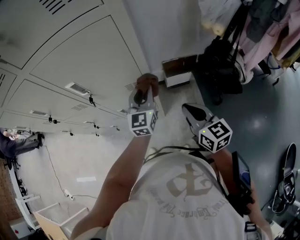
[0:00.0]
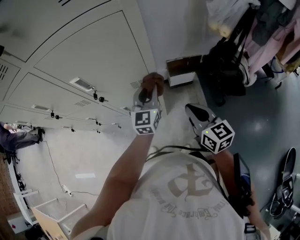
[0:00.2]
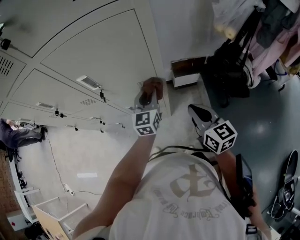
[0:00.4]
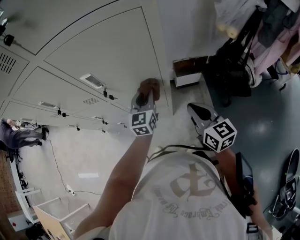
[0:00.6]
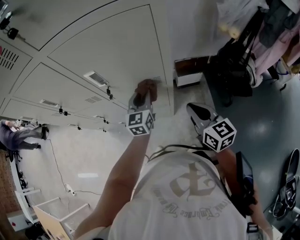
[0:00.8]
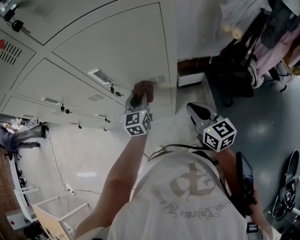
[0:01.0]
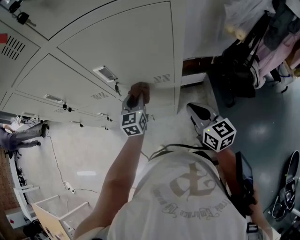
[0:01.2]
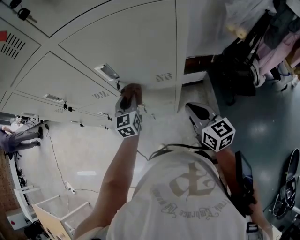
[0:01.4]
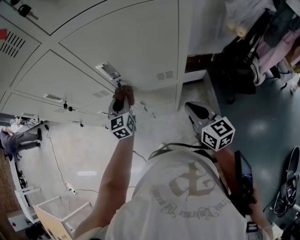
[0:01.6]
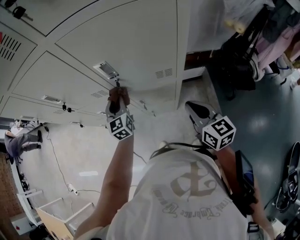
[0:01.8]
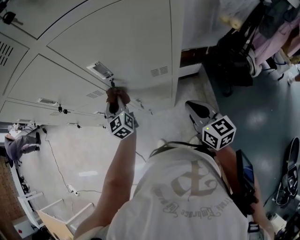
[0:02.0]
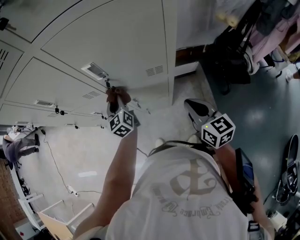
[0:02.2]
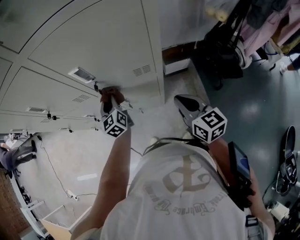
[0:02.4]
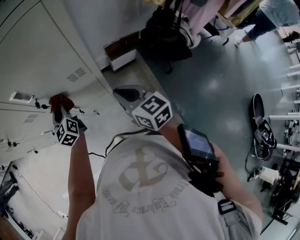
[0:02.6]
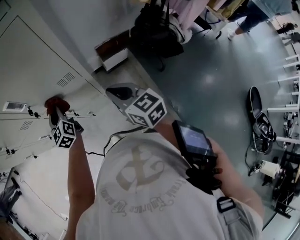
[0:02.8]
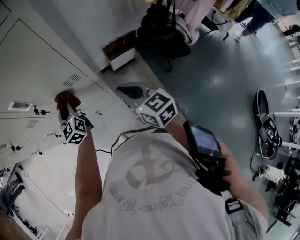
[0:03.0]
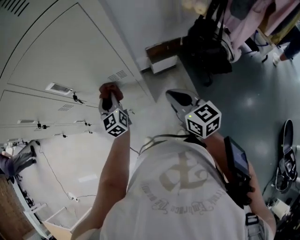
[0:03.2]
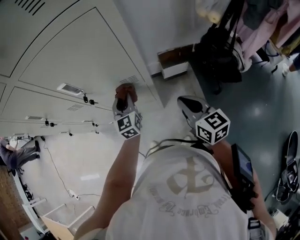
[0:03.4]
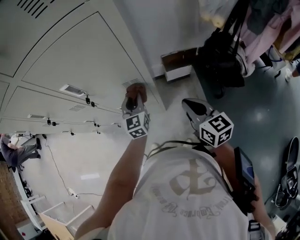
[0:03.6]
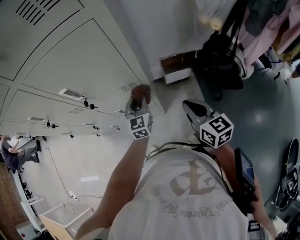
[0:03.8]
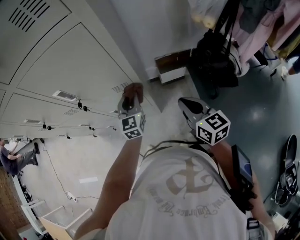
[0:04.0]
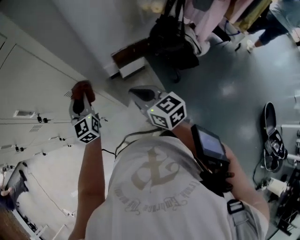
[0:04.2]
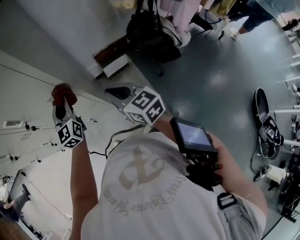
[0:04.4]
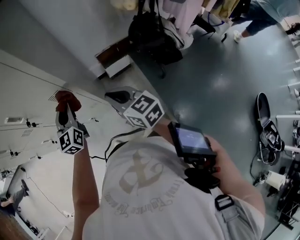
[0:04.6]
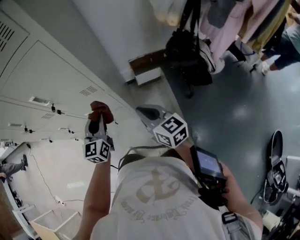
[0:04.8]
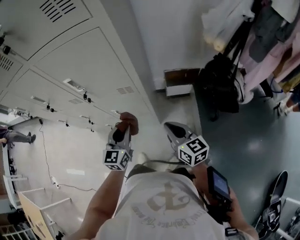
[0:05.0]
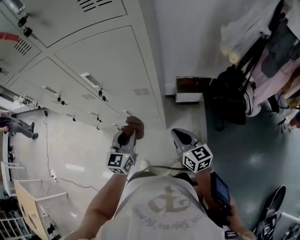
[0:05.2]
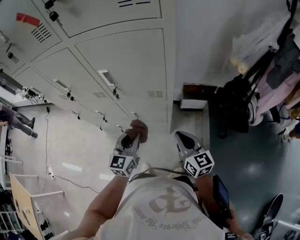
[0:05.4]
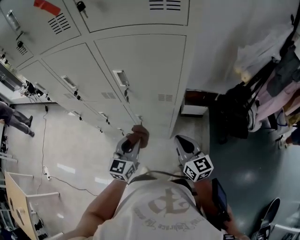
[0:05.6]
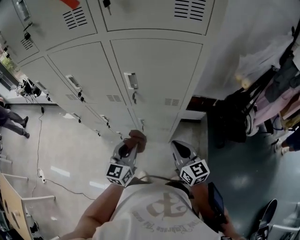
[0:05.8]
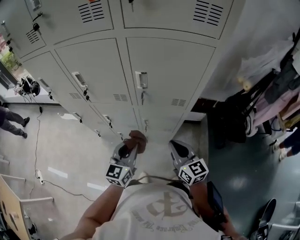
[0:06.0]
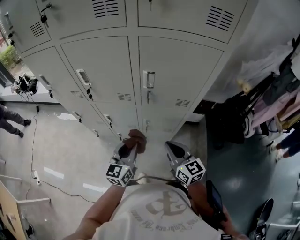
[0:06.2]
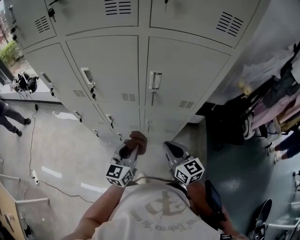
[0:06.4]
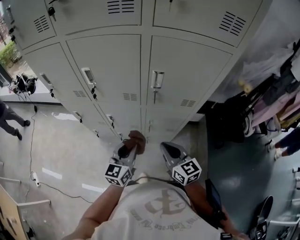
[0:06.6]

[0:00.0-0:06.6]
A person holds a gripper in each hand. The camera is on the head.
0:00.0 to 0:01.6: The left gripper travels to the left by some 25 cm. Meanwhile the right gripper travels to the left by roughly 10 cm.
0:01.6 to 0:03.2: The two grippers go about 10 cm to the right.
0:03.2 to 0:05.0: The left gripper shifts approximately 15 cm backward.
0:05.0 to 0:06.6: Both grippers move to the left, about 25 cm.

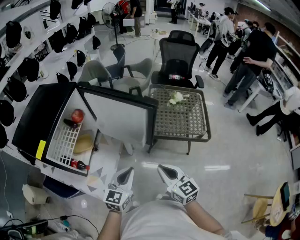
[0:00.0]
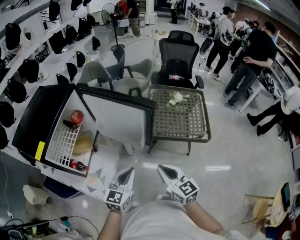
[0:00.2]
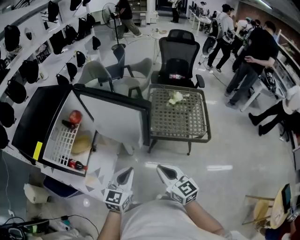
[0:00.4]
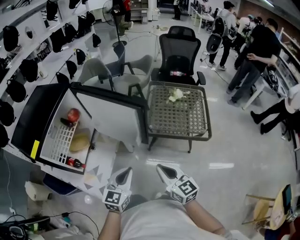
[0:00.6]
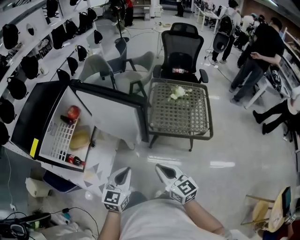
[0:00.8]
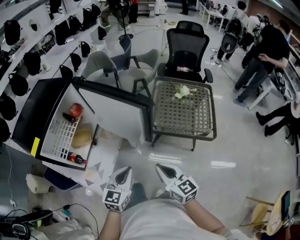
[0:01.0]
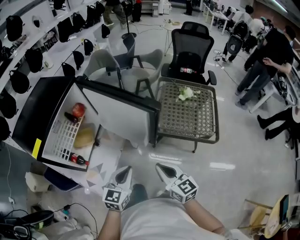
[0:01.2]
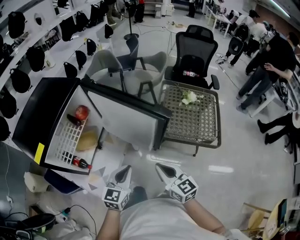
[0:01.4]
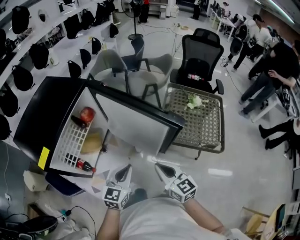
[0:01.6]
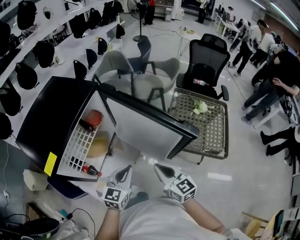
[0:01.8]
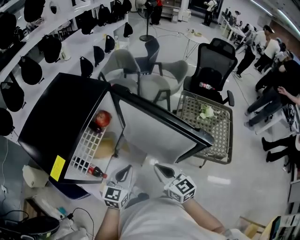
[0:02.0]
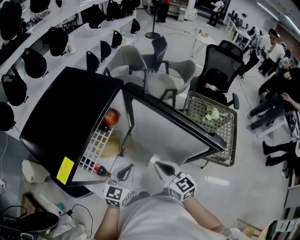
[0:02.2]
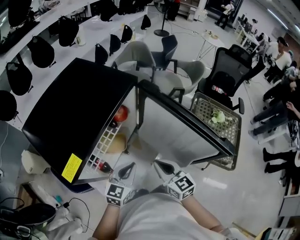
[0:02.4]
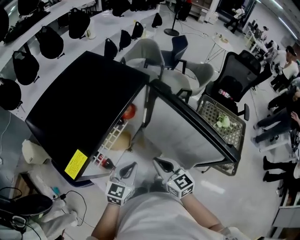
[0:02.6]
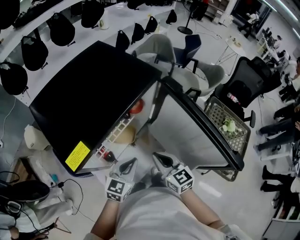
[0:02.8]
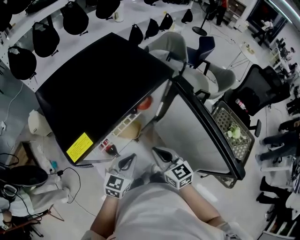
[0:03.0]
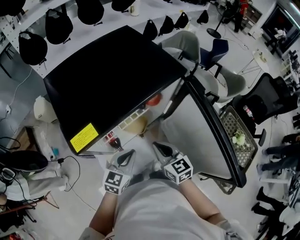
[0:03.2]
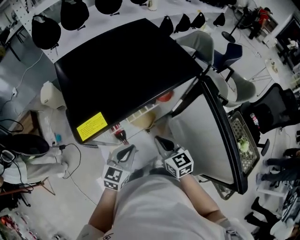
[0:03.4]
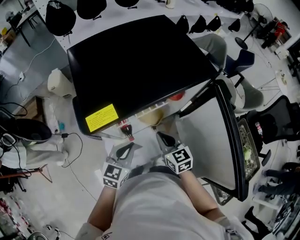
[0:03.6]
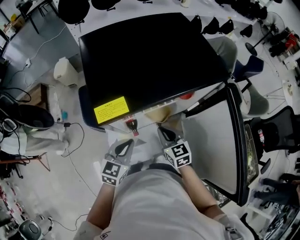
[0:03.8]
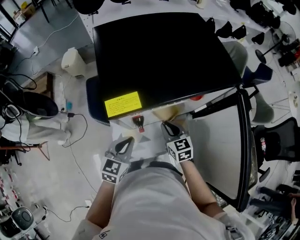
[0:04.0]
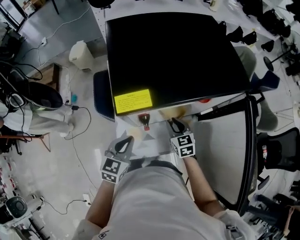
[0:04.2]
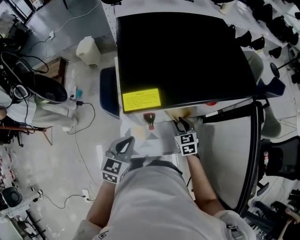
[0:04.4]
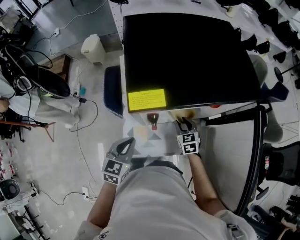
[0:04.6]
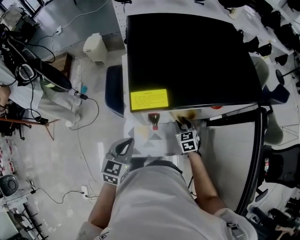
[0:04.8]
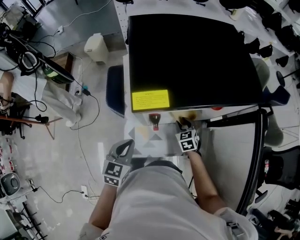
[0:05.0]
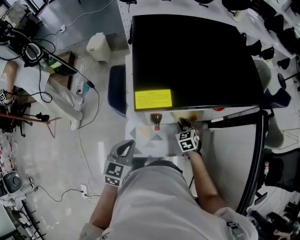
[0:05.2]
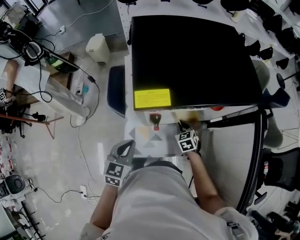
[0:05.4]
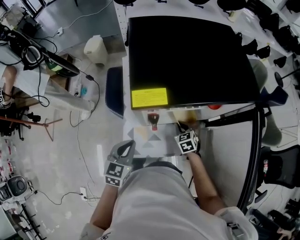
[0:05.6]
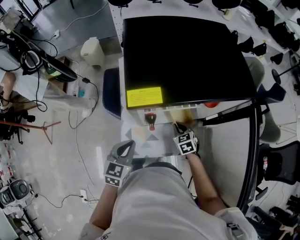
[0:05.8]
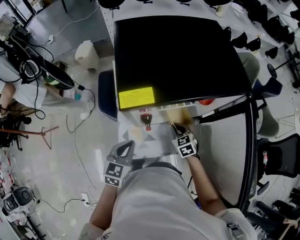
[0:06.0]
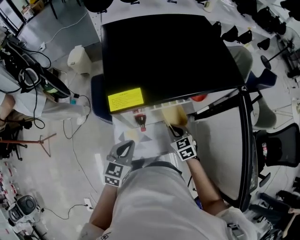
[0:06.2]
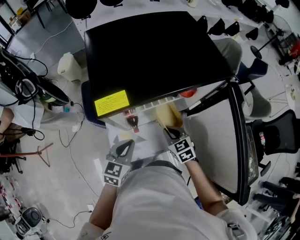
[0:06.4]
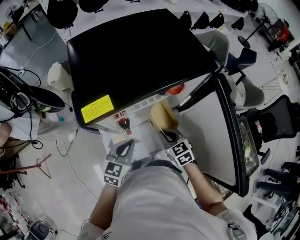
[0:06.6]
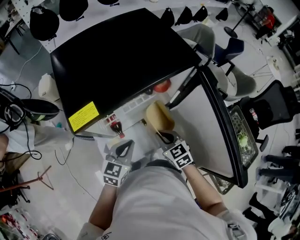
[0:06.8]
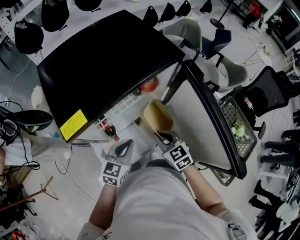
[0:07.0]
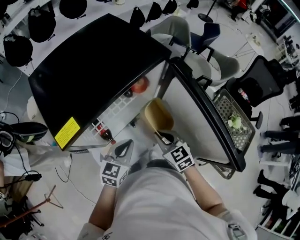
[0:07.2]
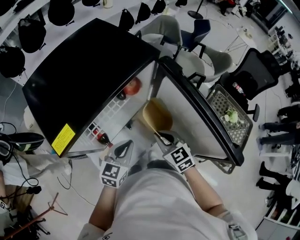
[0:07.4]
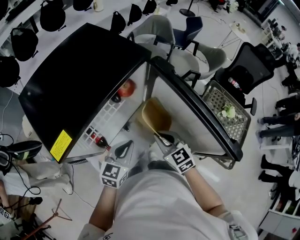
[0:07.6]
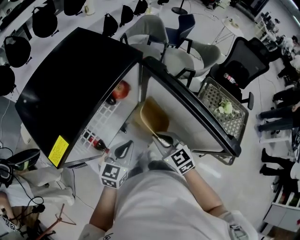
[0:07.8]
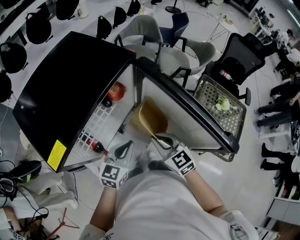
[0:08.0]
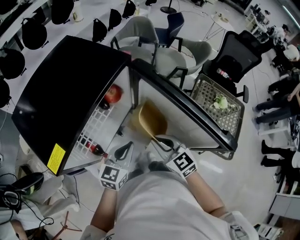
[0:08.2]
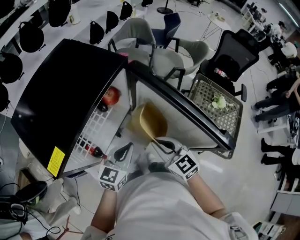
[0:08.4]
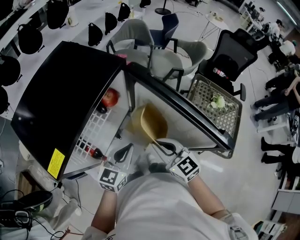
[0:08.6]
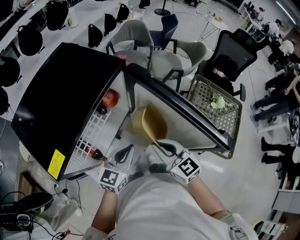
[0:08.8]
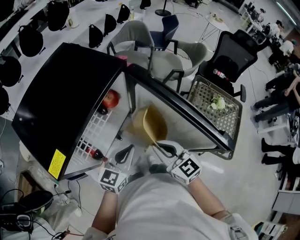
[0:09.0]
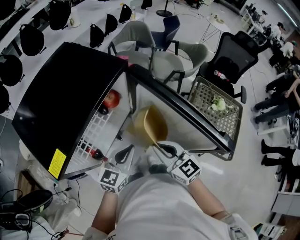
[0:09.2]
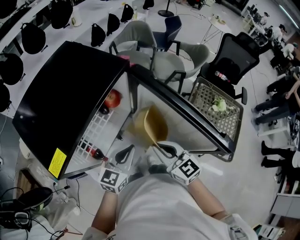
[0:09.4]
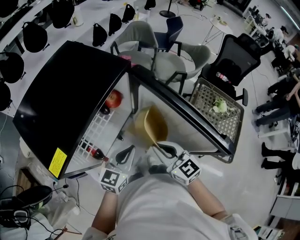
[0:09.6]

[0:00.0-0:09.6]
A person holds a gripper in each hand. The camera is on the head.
0:00.0 to 0:01.6: The grippers both shift forward and to the left by about 10 cm.
0:01.6 to 0:03.2: The right gripper ends up approximately 30 cm from where it was, and rotates approximately 40 degrees. Meanwhile the left gripper shifts by approximately 20 cm, and swivels approximately 30 degrees.
0:03.2 to 0:04.8: The left gripper travels to the left by roughly 15 cm, and swivels roughly 40 degrees, while the right gripper goes approximately 20 cm downward and forward, turns by about 30 degrees, and opens its fingers.
0:04.8 to 0:06.4: The left gripper travels to the right by approximately 10 cm; the right gripper travels backward and upward by some 10 cm, and closes.
0:06.4 to 0:08.0: The left gripper ends up some 15 cm from where it was, and swivels roughly 40 degrees. The right gripper shifts by some 15 cm, and changes its angle by approximately 30 degrees.
0:08.0 to 0:09.6: The grippers make only small movements.

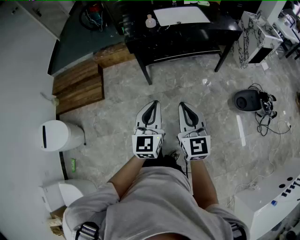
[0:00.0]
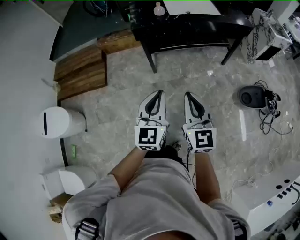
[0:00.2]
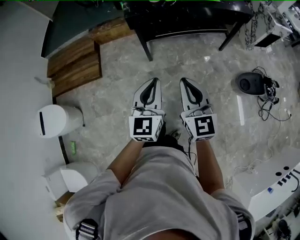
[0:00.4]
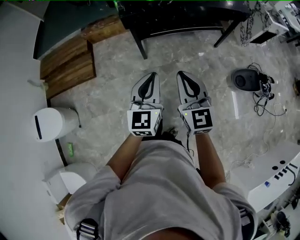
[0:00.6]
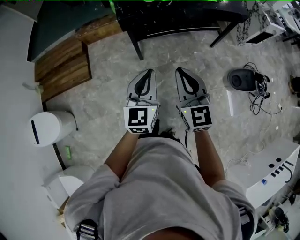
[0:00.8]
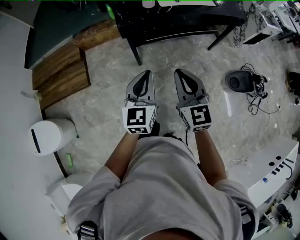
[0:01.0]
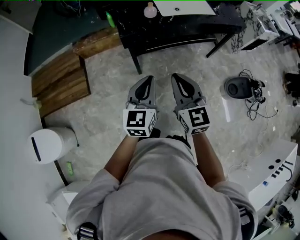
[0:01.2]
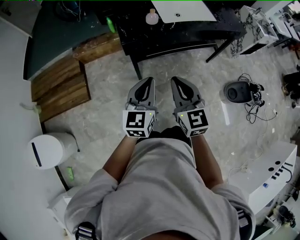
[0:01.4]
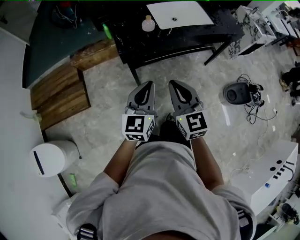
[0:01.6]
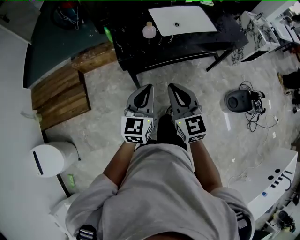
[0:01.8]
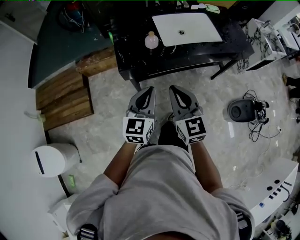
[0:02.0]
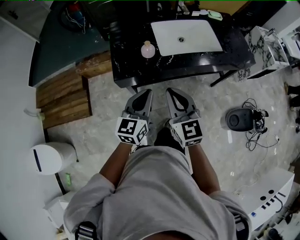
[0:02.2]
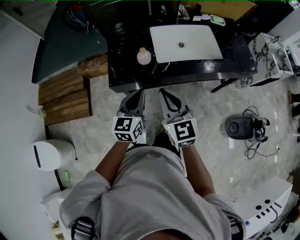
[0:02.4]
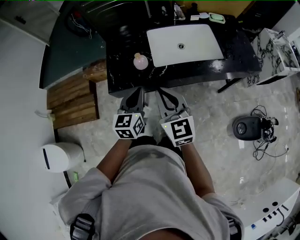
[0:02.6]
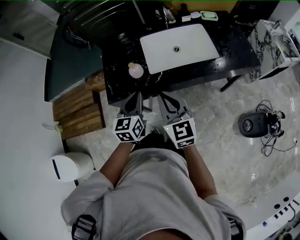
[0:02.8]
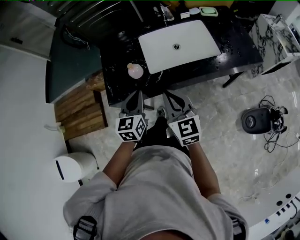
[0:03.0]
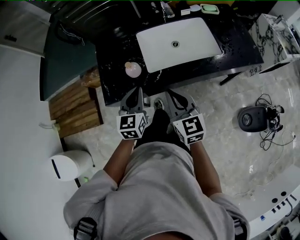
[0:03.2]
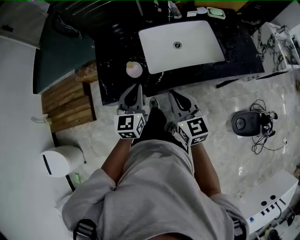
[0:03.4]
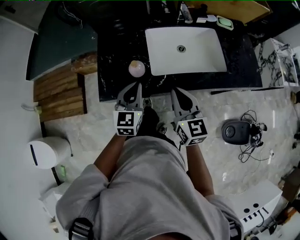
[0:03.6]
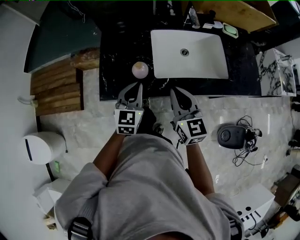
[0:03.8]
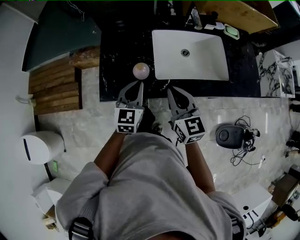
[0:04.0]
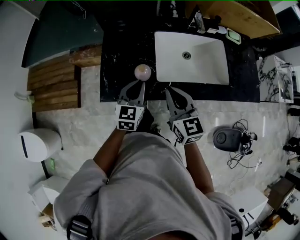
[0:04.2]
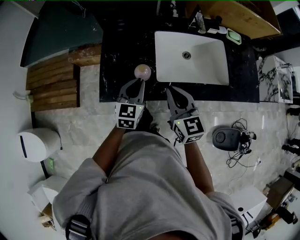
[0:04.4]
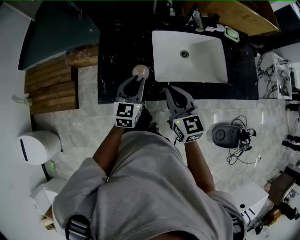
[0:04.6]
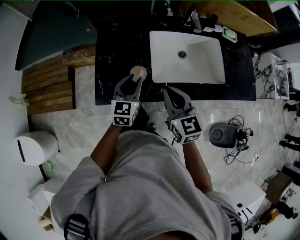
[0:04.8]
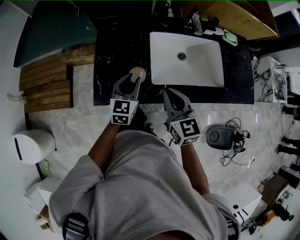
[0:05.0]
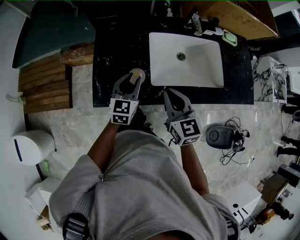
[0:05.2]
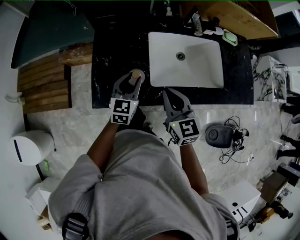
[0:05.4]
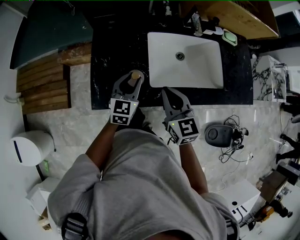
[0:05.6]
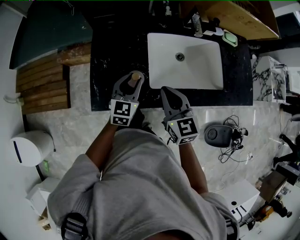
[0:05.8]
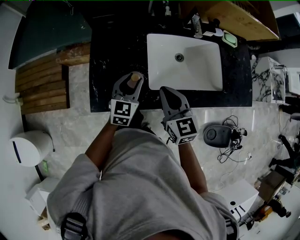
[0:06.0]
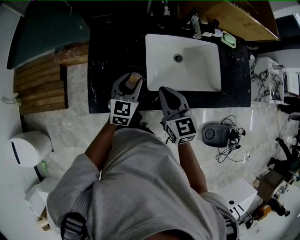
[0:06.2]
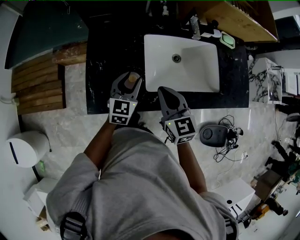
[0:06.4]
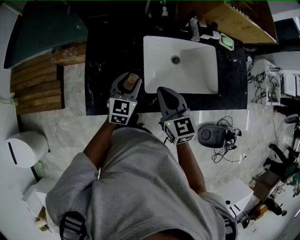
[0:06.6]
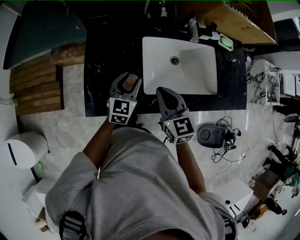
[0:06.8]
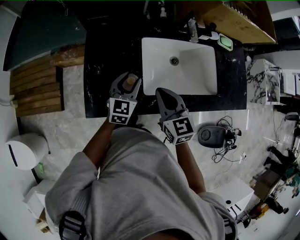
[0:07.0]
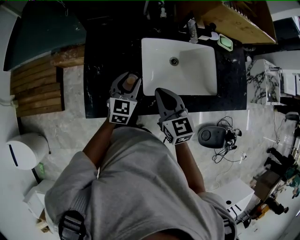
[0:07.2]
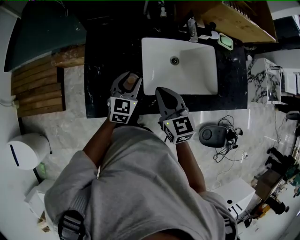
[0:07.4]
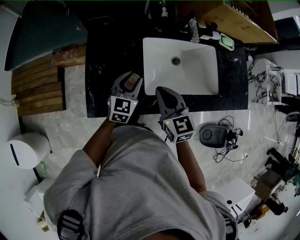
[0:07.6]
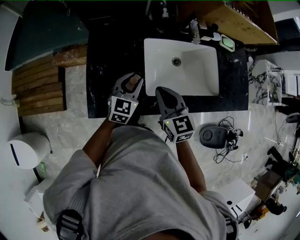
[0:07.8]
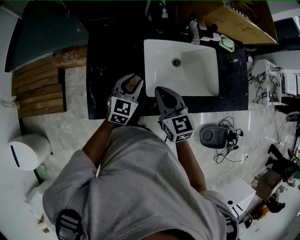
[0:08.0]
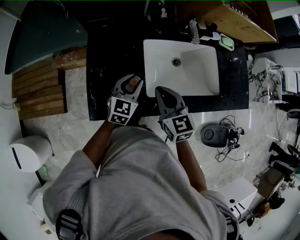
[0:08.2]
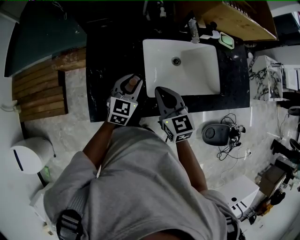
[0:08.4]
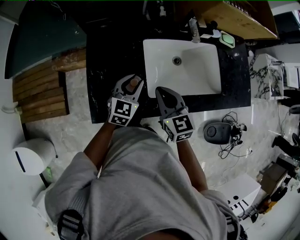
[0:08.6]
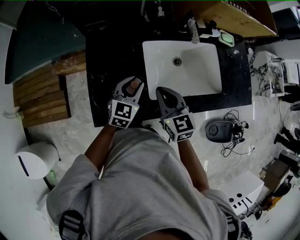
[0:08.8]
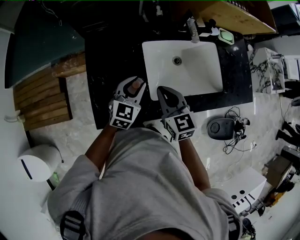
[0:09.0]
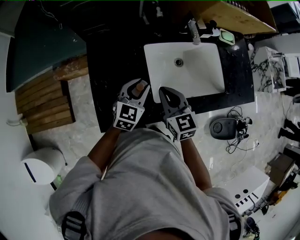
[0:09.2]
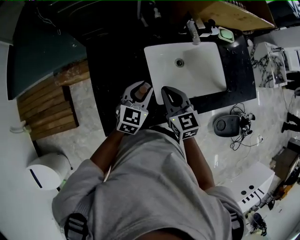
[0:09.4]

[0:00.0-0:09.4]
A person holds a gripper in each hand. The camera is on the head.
0:00.0 to 0:01.6: The left gripper travels forward by about 30 cm. Meanwhile the right gripper is displaced forward and to the left by roughly 30 cm.
0:01.6 to 0:03.2: Both grippers travel together forward and to the right, roughly 30 cm.
0:03.2 to 0:04.8: The left gripper moves forward and downward, some 10 cm, and opens its fingers. Meanwhile the right gripper goes some 10 cm forward.
0:04.8 to 0:06.2: The left gripper shifts by about 5 cm.
0:06.2 to 0:07.8: The grippers stay close to where they were, moving slightly.
0:07.8 to 0:09.4: The right gripper ends up approximately 5 cm from where it was.
